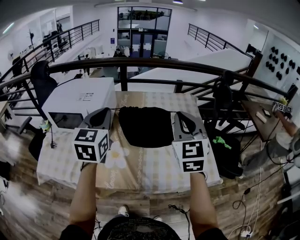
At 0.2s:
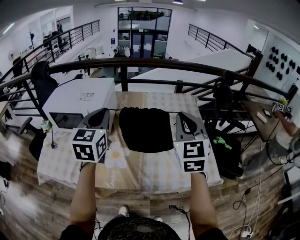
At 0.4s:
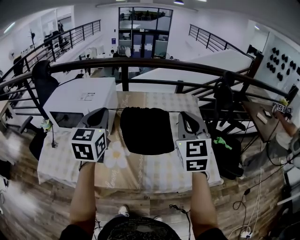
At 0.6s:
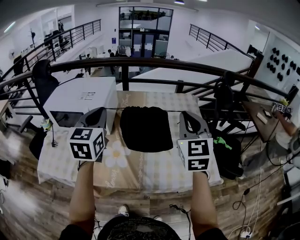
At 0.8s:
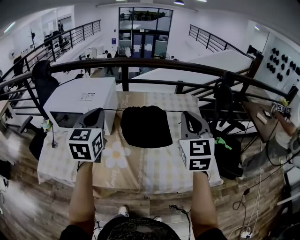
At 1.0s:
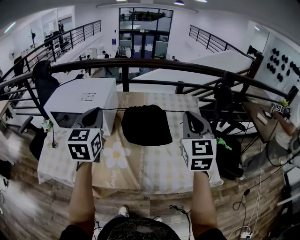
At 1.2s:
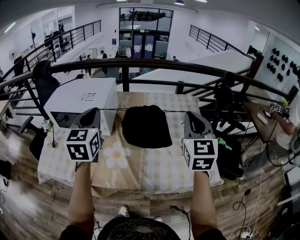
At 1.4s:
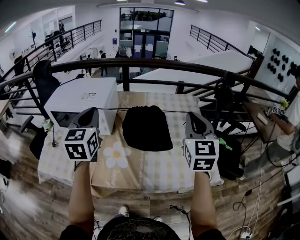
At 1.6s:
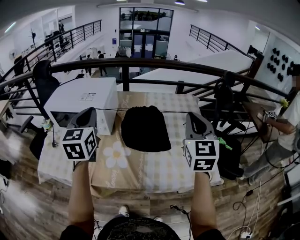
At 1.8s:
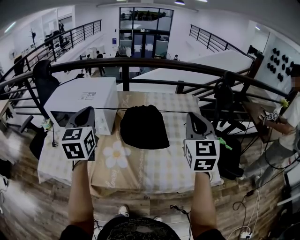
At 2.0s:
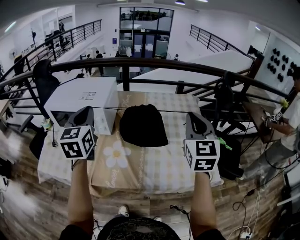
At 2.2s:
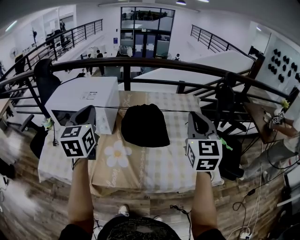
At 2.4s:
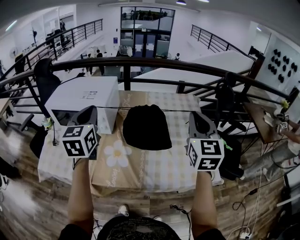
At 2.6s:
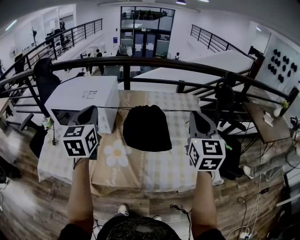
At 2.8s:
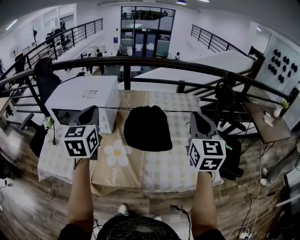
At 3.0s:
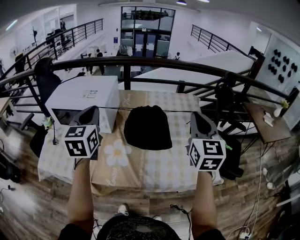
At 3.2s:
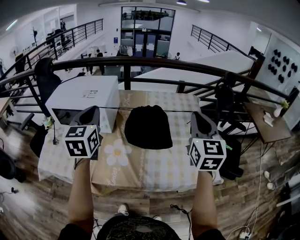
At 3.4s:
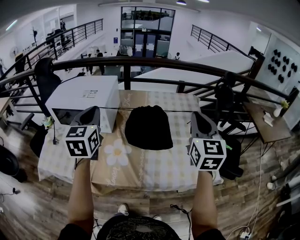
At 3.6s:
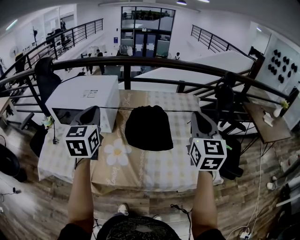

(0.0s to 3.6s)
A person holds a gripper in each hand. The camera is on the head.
0.0s - 1.8s: The left gripper shifts approximately 5 cm to the left.
1.8s - 3.6s: The grippers make only small movements.

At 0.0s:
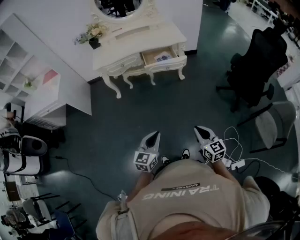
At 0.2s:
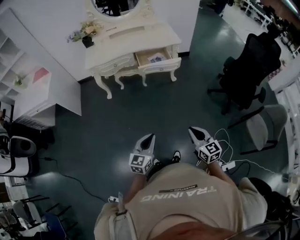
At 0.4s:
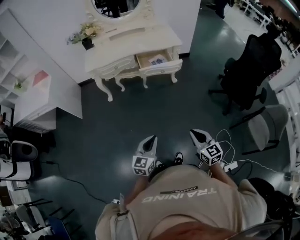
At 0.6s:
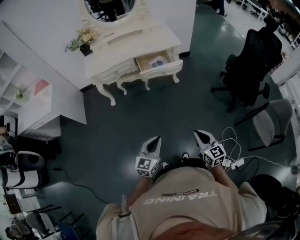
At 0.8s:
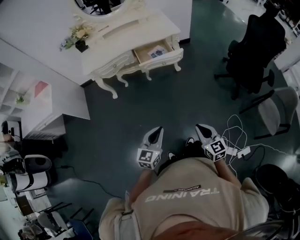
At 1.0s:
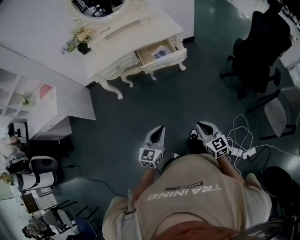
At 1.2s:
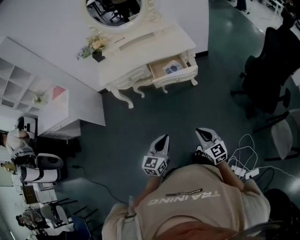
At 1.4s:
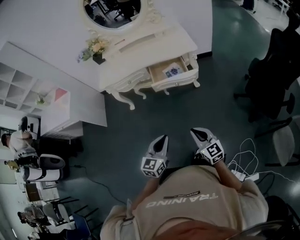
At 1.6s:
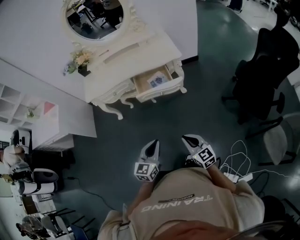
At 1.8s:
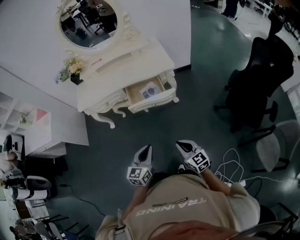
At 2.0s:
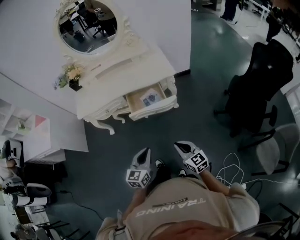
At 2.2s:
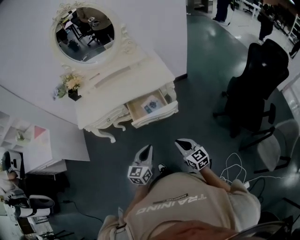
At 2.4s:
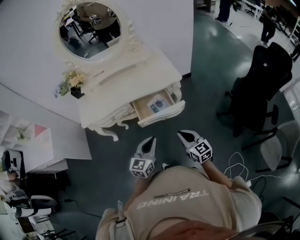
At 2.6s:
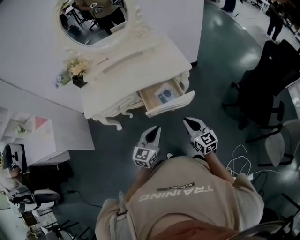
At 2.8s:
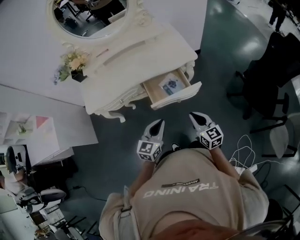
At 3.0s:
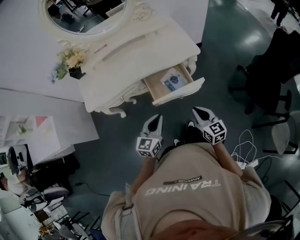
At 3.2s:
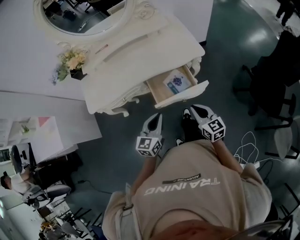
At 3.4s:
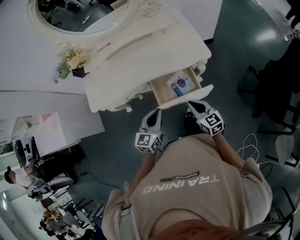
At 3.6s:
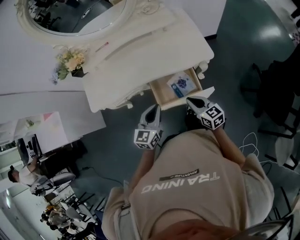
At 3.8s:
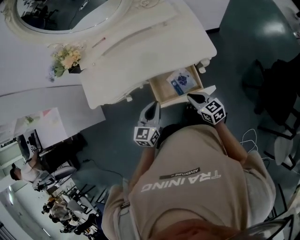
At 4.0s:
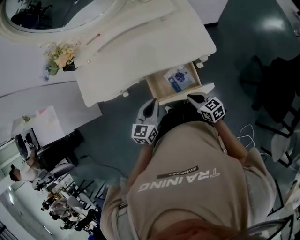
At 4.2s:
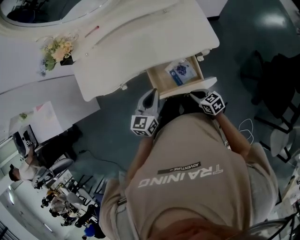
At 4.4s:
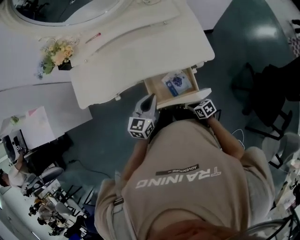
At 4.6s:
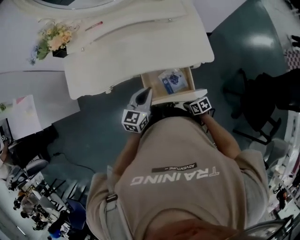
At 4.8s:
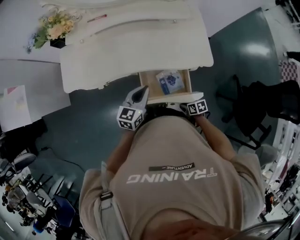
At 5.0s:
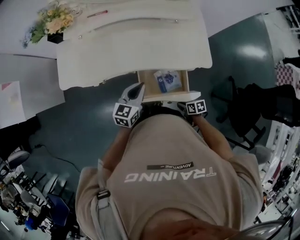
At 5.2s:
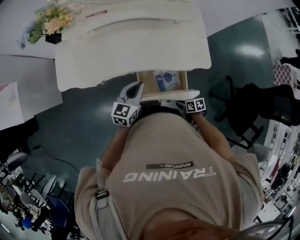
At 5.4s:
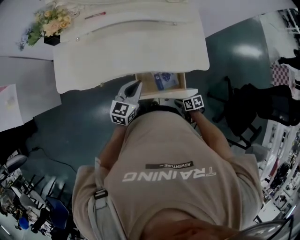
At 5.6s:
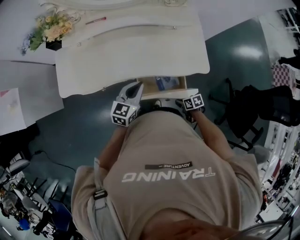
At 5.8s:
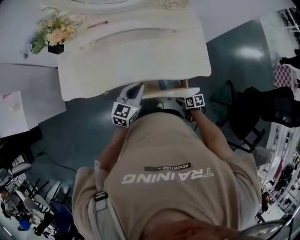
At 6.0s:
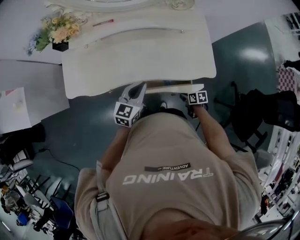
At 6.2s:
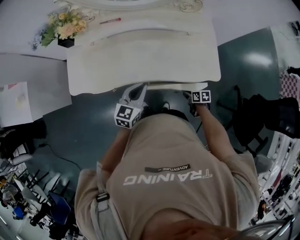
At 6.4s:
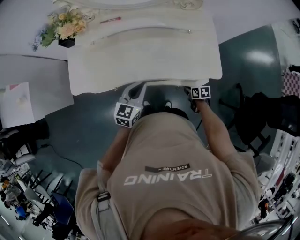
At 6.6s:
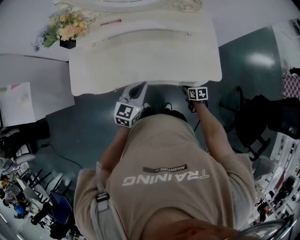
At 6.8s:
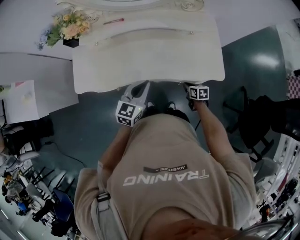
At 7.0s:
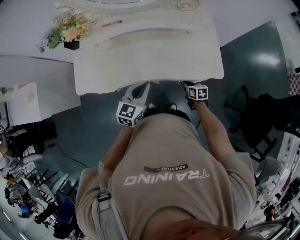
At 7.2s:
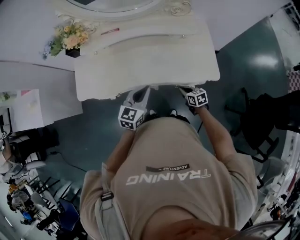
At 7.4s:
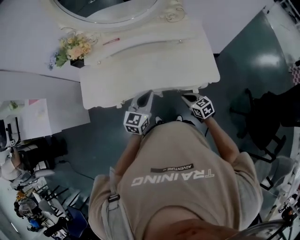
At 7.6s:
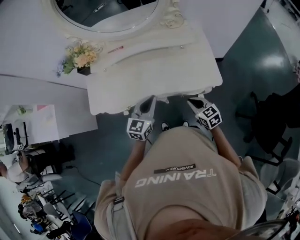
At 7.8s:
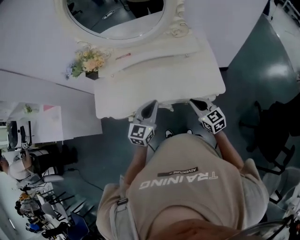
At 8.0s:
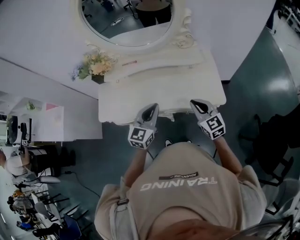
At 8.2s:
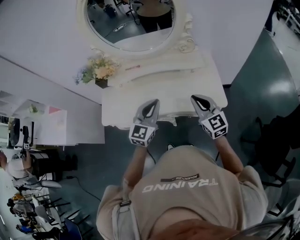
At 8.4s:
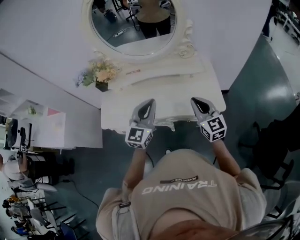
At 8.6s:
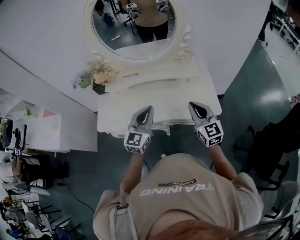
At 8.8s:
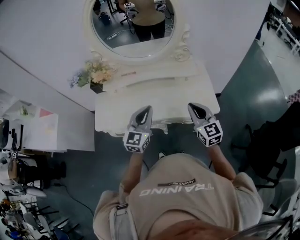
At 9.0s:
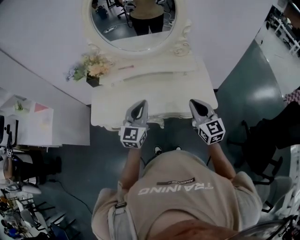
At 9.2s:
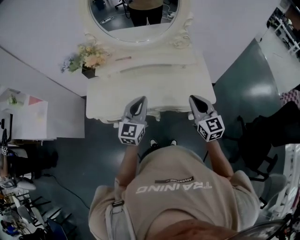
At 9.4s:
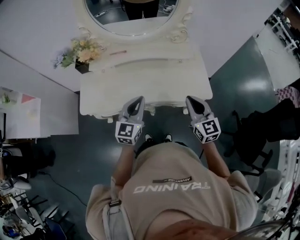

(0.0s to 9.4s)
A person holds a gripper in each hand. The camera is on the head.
0.0s - 1.6s: The two grippers go approximately 25 cm forward.
1.6s - 3.2s: The two grippers go some 35 cm forward.
3.2s - 4.8s: The right gripper shifts some 25 cm downward, and tips its fingers downward by roughly 30 degrees. Meanwhile the left gripper shifts by roughly 20 cm.
4.8s - 6.2s: The right gripper goes approximately 15 cm forward, while the left gripper moves forward, approximately 10 cm.
6.2s - 7.8s: The right gripper goes roughly 30 cm upward, and points its fingers about 30 degrees further upward. The left gripper shifts approximately 15 cm upward, to the right and backward.
7.8s - 9.4s: The left gripper is displaced to the left by roughly 10 cm, and travels upward and back again, approximately 10 cm each way; the right gripper is displaced upward and to the left by about 15 cm, and turns by roughly 20 degrees.

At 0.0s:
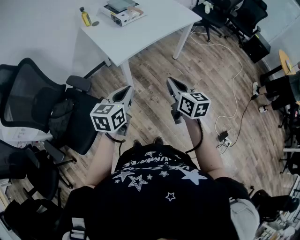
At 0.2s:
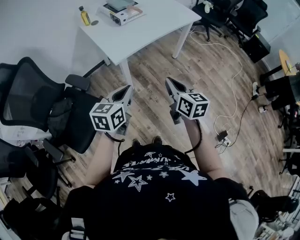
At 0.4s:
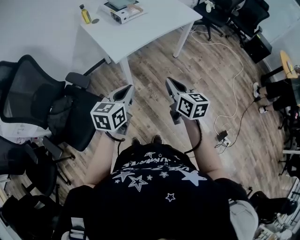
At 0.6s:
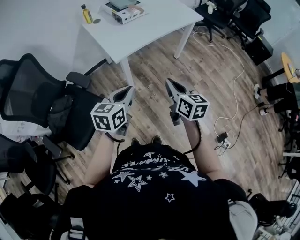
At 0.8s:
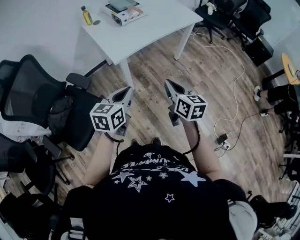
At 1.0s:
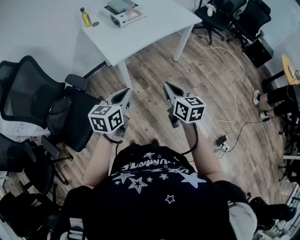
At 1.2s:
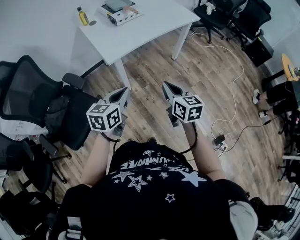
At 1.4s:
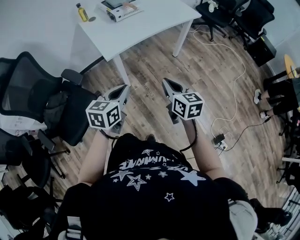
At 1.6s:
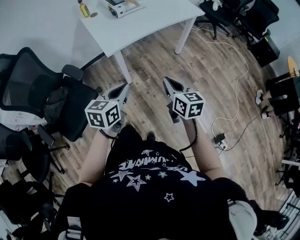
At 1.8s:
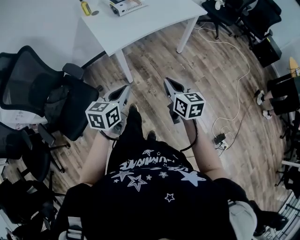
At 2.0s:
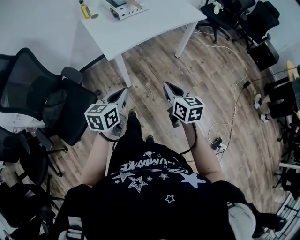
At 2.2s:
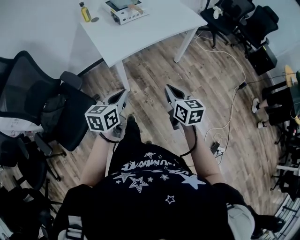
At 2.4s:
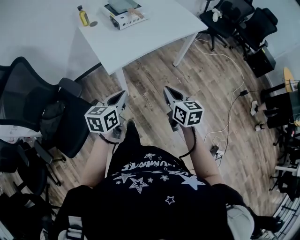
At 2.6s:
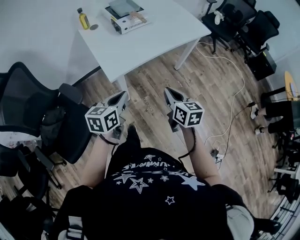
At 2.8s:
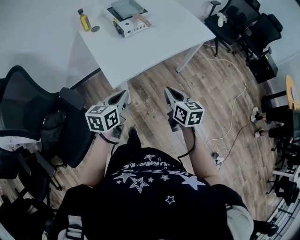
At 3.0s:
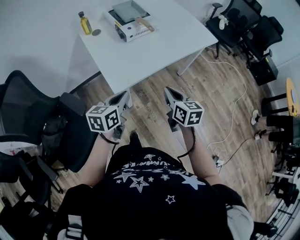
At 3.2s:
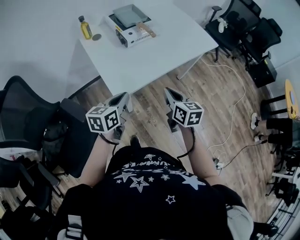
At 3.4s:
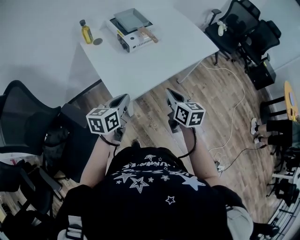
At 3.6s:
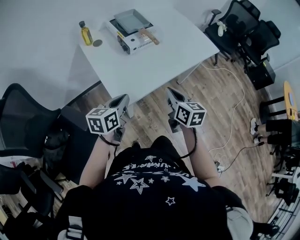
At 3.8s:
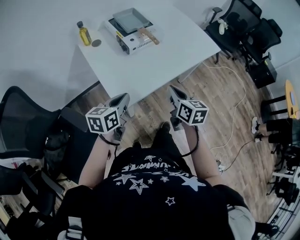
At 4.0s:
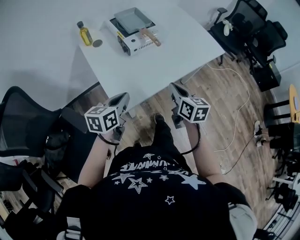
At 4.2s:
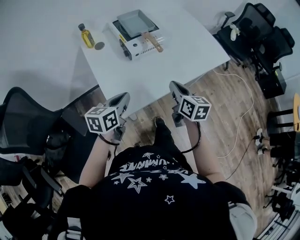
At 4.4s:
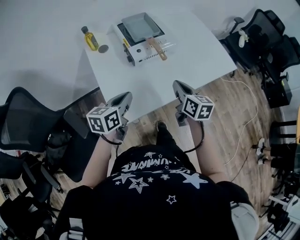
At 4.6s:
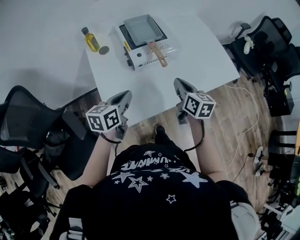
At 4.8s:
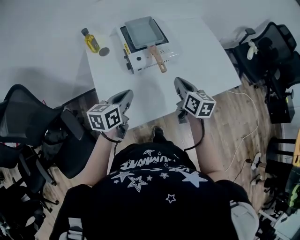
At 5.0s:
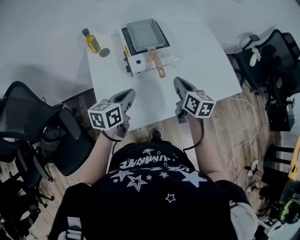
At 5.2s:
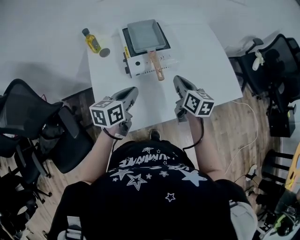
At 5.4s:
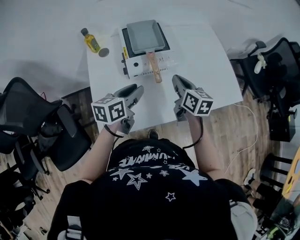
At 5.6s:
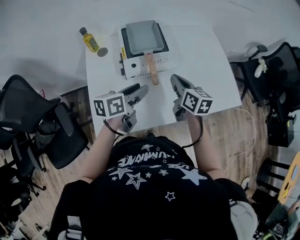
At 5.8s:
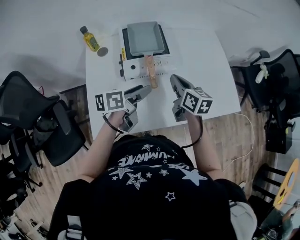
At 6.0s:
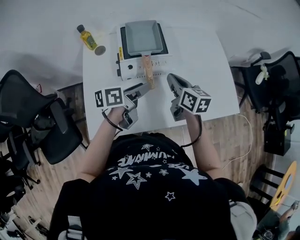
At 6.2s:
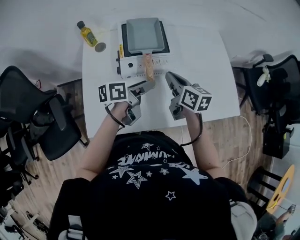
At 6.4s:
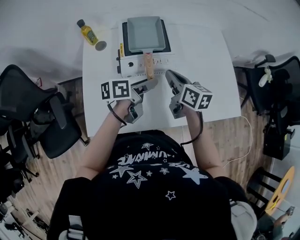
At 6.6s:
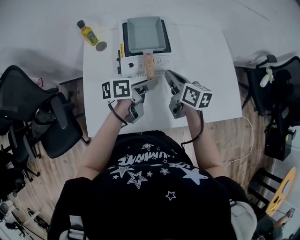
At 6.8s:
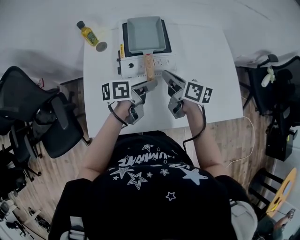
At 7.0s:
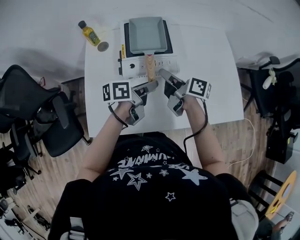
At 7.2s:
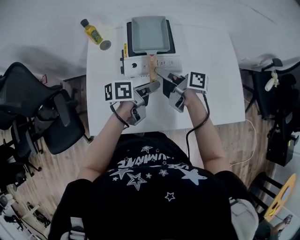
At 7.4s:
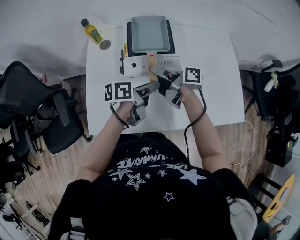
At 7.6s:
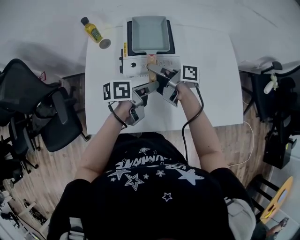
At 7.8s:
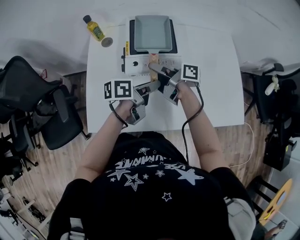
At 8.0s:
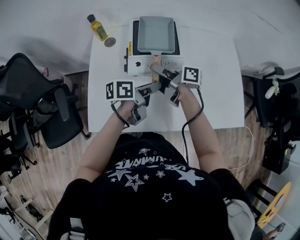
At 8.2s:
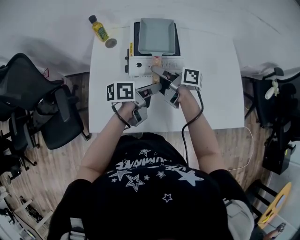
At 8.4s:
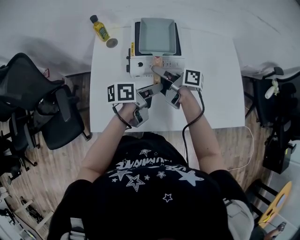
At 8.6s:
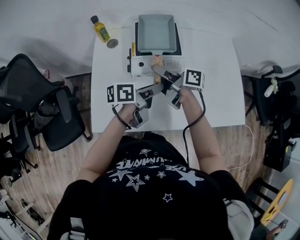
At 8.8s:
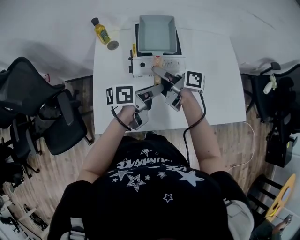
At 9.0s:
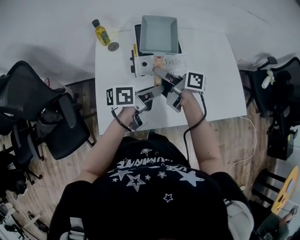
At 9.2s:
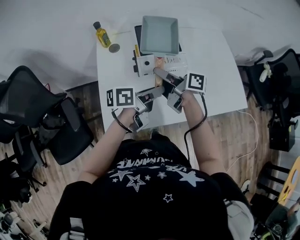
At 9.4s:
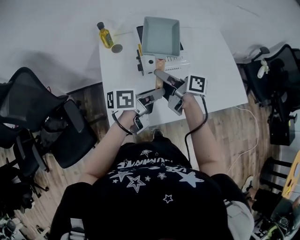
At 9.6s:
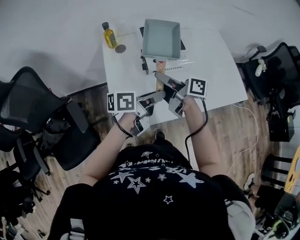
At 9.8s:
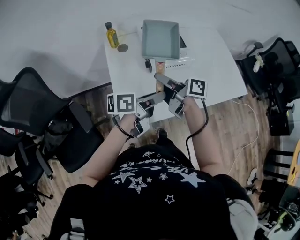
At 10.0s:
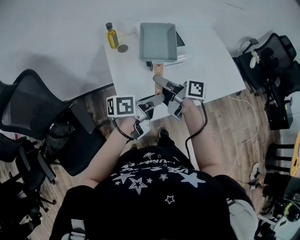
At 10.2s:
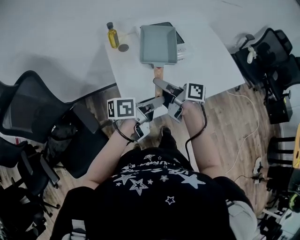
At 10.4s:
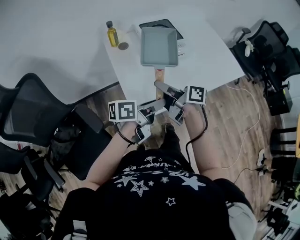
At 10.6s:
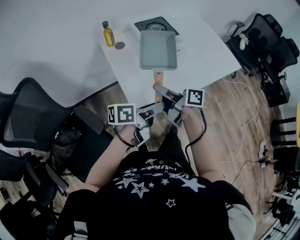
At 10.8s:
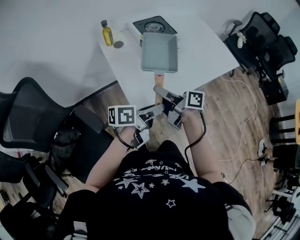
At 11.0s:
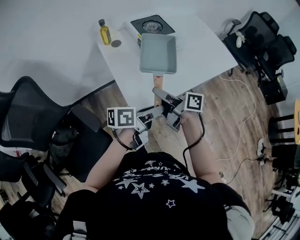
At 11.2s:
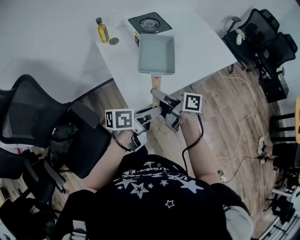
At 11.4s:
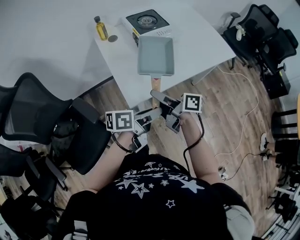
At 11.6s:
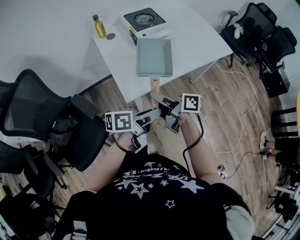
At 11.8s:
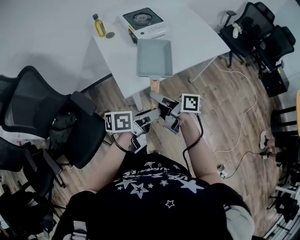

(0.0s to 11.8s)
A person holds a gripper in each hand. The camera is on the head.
0.0s - 1.4s: Both grippers move to the right, some 5 cm.
1.4s - 3.0s: The left gripper shifts approximately 25 cm forward and to the left, while the right gripper goes about 25 cm forward.
3.0s - 4.4s: Both grippers travel together forward, about 20 cm.
4.4s - 6.0s: The left gripper travels forward and to the right by roughly 25 cm, rotates about 30 degrees, and opens its fingers; the right gripper moves forward, roughly 20 cm, and swivels about 20 degrees.
6.0s - 7.4s: The right gripper goes some 10 cm to the left, changes its angle by roughly 50 degrees, and opens; the left gripper closes.
7.4s - 8.8s: The left gripper changes place by approximately 5 cm.
8.8s - 10.4s: The grippers both shift backward and to the left by some 25 cm. The left gripper rotates approximately 20 degrees.
10.4s - 11.8s: The two grippers go approximately 20 cm backward.
